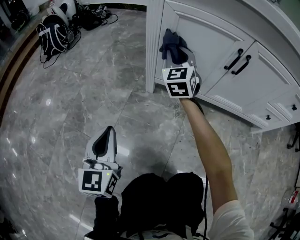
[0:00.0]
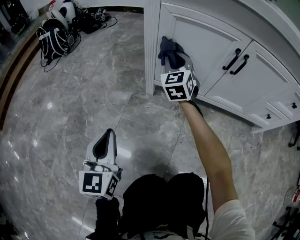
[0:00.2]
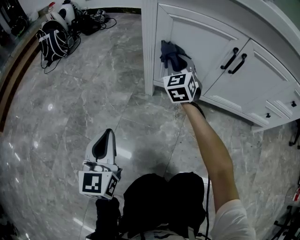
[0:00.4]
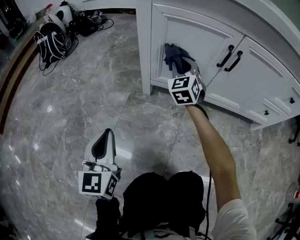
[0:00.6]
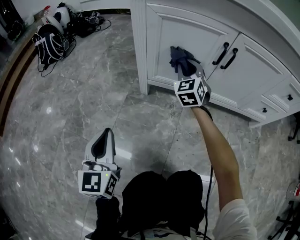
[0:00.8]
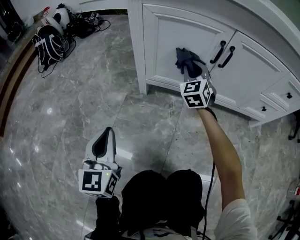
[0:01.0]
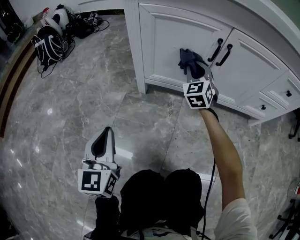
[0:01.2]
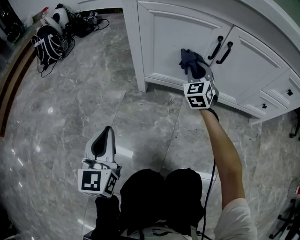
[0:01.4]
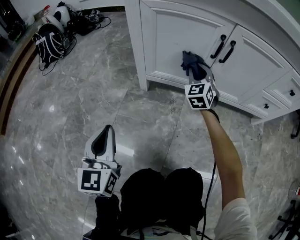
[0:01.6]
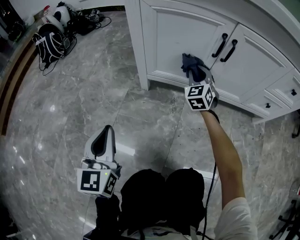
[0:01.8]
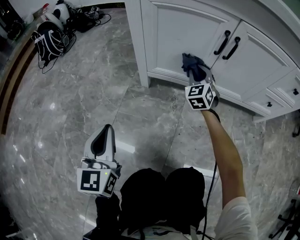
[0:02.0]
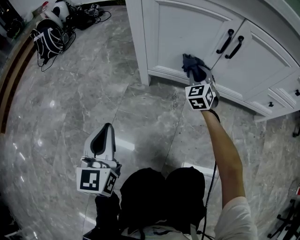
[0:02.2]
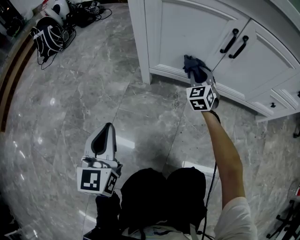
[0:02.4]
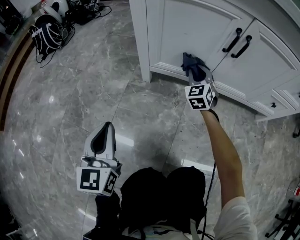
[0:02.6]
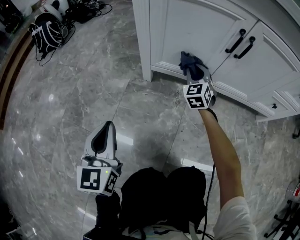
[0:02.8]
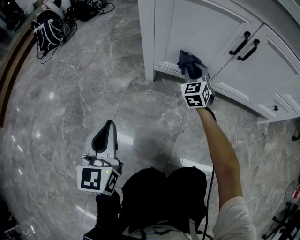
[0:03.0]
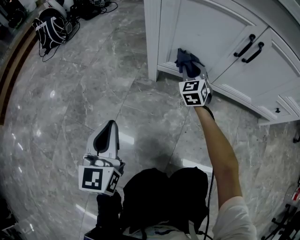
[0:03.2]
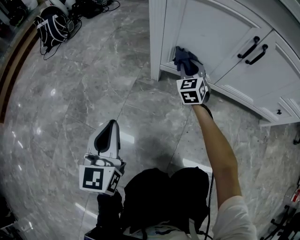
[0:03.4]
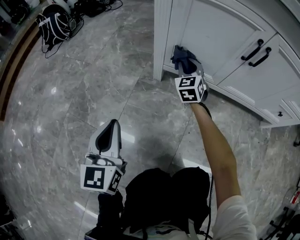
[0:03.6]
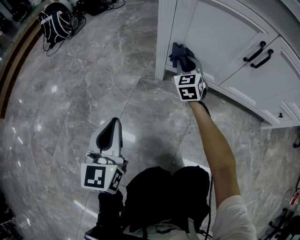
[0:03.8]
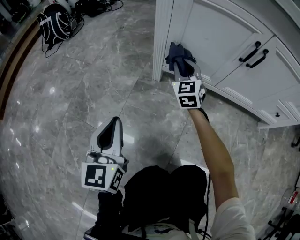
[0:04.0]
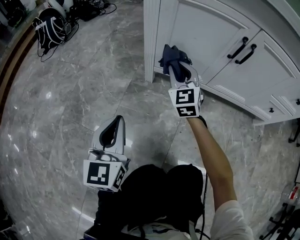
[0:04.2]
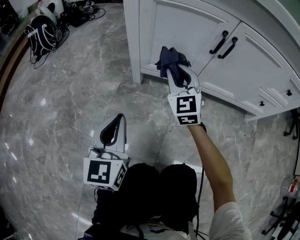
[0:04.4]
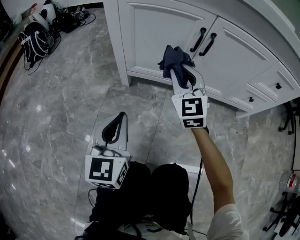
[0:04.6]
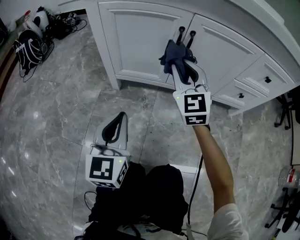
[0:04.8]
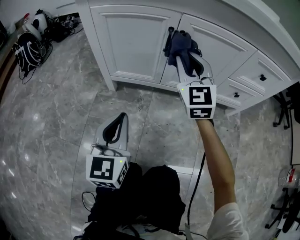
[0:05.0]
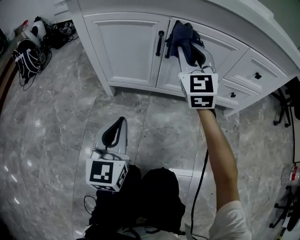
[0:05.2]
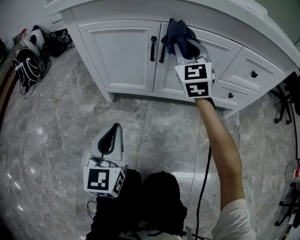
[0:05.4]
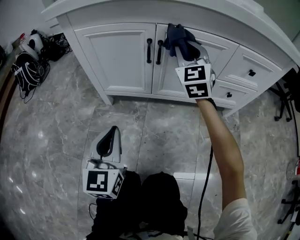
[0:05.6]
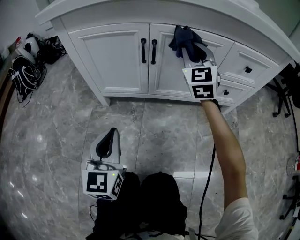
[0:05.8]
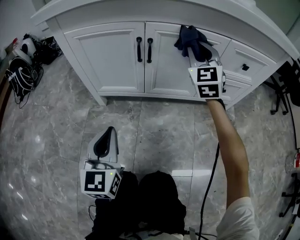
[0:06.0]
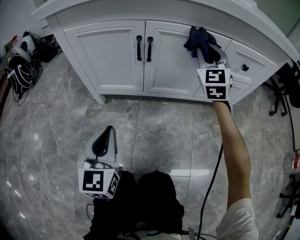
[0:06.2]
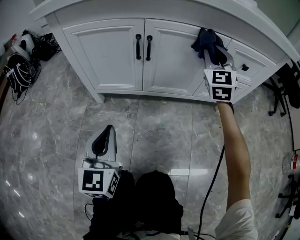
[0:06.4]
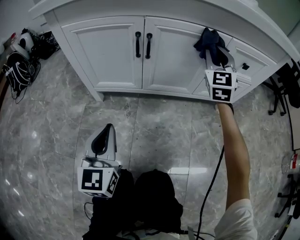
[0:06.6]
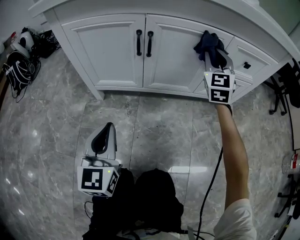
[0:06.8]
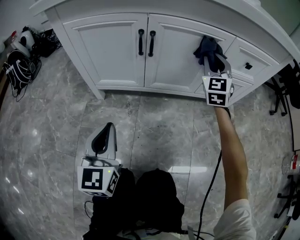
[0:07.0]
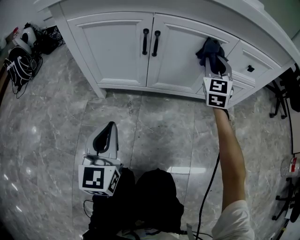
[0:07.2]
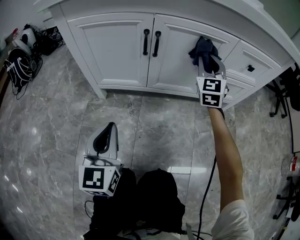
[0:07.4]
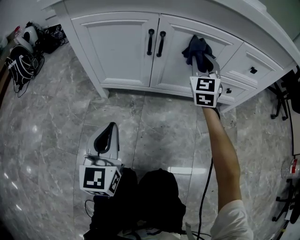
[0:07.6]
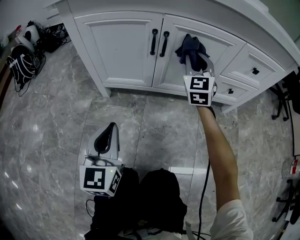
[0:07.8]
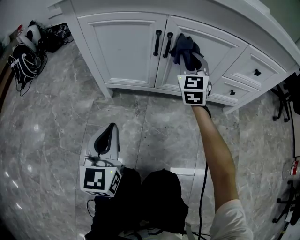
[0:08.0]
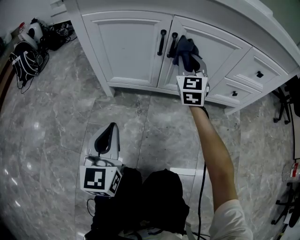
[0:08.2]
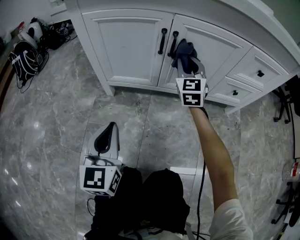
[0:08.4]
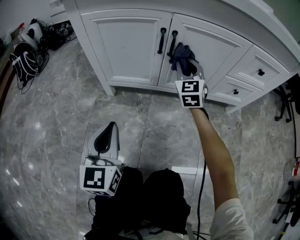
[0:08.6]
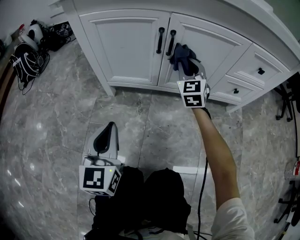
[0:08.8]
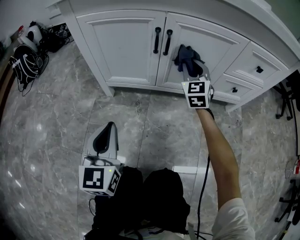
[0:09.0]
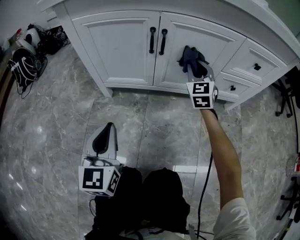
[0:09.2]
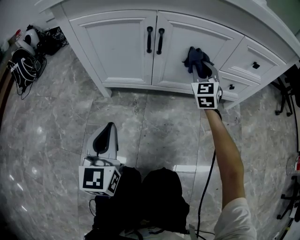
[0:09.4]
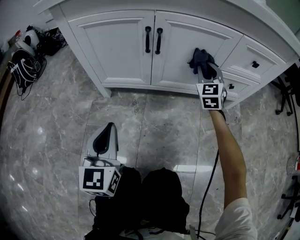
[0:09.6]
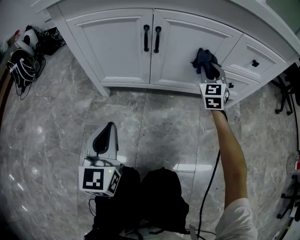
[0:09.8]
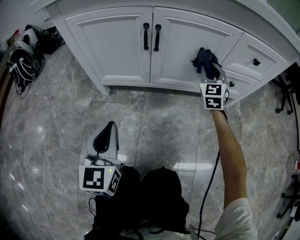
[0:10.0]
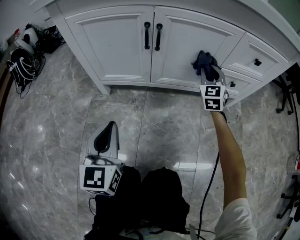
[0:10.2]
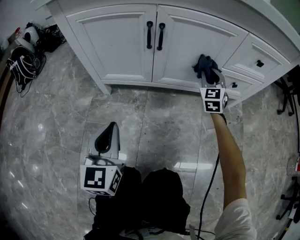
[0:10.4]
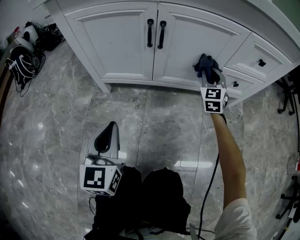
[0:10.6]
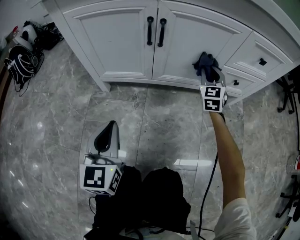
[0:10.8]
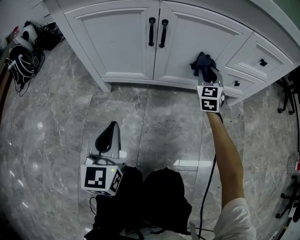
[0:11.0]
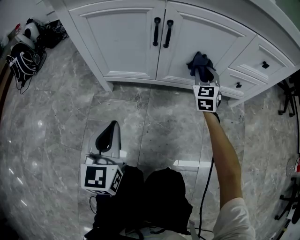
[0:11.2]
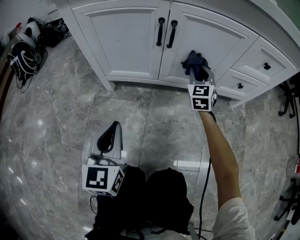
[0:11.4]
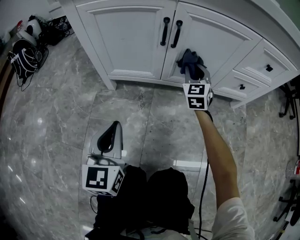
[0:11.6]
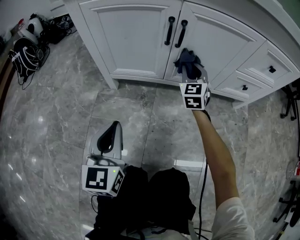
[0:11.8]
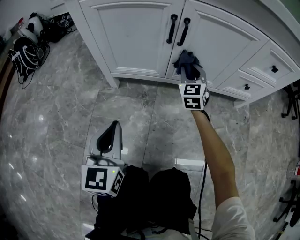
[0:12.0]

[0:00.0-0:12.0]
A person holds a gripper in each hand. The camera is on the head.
0:00.0 to 0:01.6: The right gripper is displaced to the right and downward by some 20 cm.
0:01.6 to 0:03.0: The right gripper shifts roughly 10 cm downward and to the left.
0:03.0 to 0:04.4: The right gripper shifts some 15 cm upward and backward; the left gripper moves to the right, some 5 cm.
0:04.4 to 0:06.0: The right gripper goes some 35 cm to the right and upward, and turns by roughly 20 degrees. Meanwhile the left gripper is displaced to the right by some 15 cm.
0:06.0 to 0:07.6: The right gripper goes about 5 cm downward.
0:07.6 to 0:09.0: The right gripper is displaced downward by some 5 cm.
0:09.0 to 0:10.4: The right gripper is displaced to the right and downward by approximately 15 cm.
0:10.4 to 0:12.0: The right gripper shifts roughly 15 cm to the left.

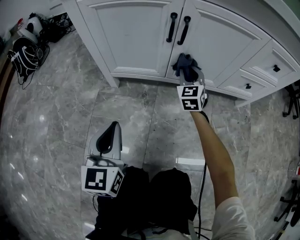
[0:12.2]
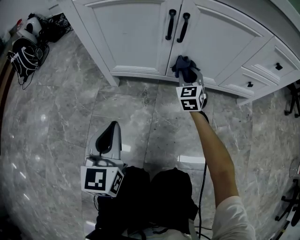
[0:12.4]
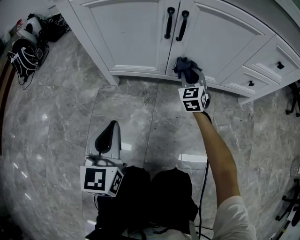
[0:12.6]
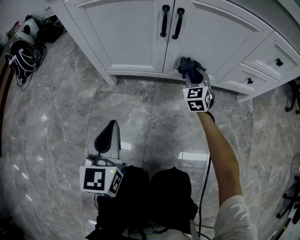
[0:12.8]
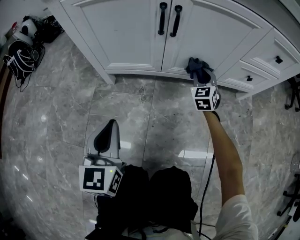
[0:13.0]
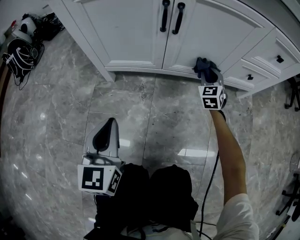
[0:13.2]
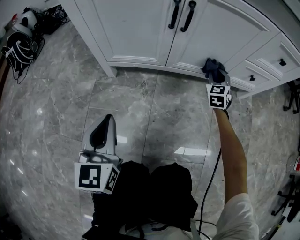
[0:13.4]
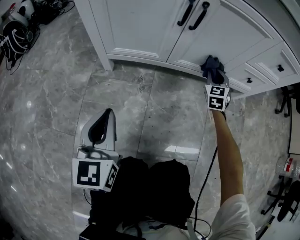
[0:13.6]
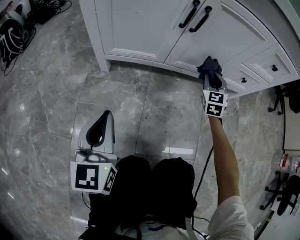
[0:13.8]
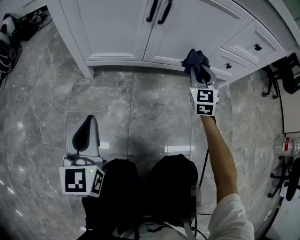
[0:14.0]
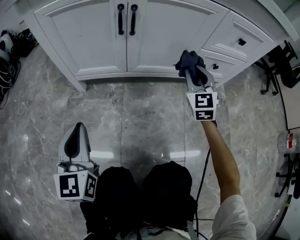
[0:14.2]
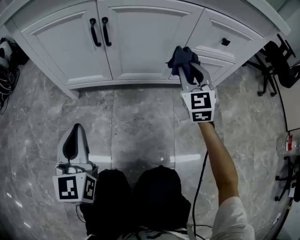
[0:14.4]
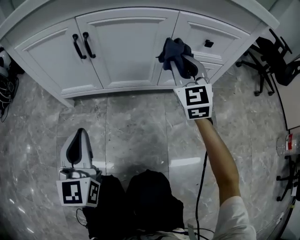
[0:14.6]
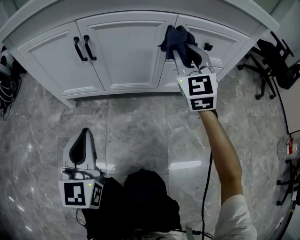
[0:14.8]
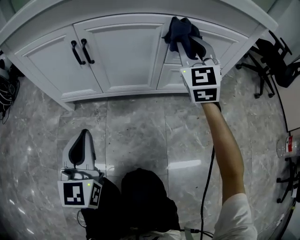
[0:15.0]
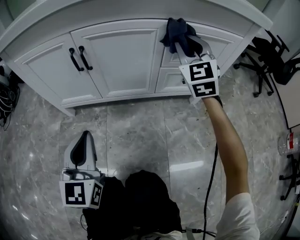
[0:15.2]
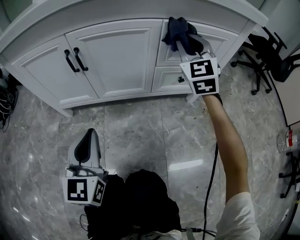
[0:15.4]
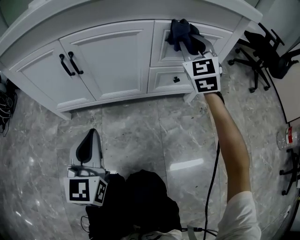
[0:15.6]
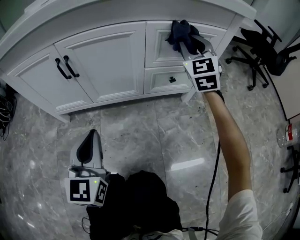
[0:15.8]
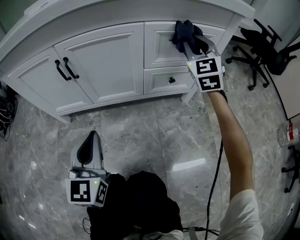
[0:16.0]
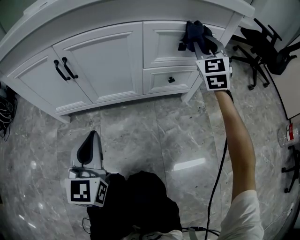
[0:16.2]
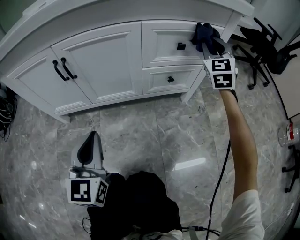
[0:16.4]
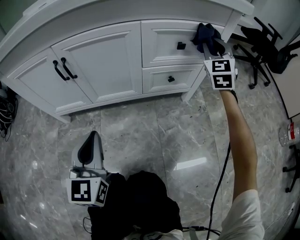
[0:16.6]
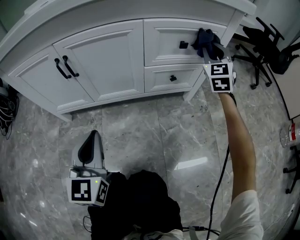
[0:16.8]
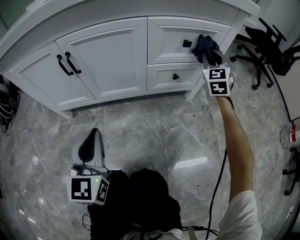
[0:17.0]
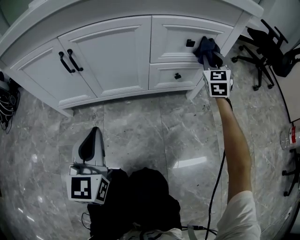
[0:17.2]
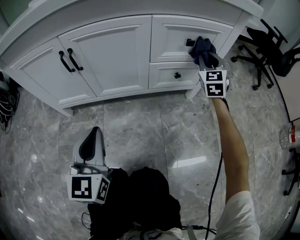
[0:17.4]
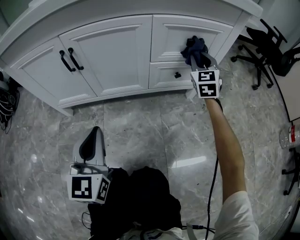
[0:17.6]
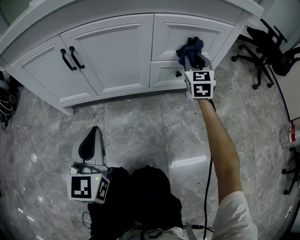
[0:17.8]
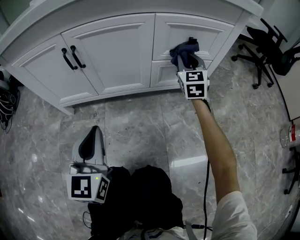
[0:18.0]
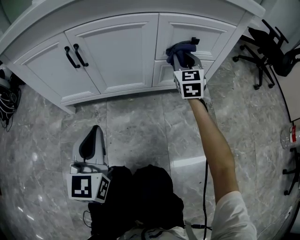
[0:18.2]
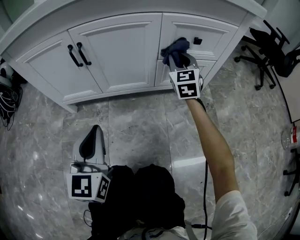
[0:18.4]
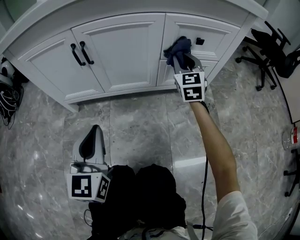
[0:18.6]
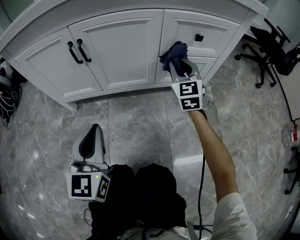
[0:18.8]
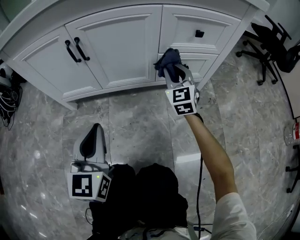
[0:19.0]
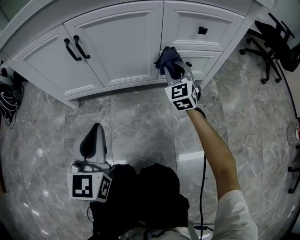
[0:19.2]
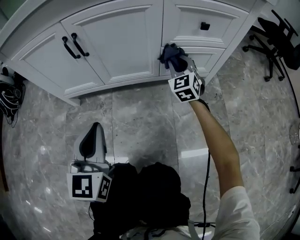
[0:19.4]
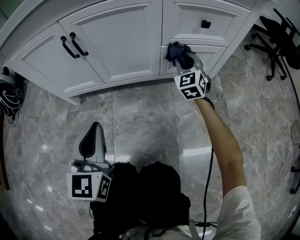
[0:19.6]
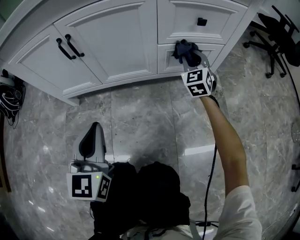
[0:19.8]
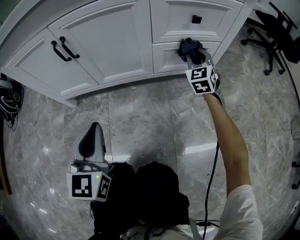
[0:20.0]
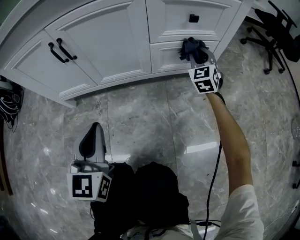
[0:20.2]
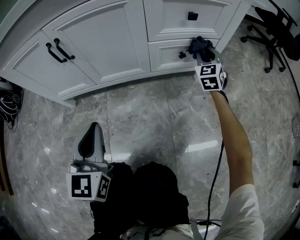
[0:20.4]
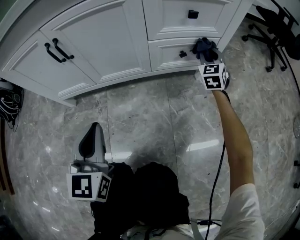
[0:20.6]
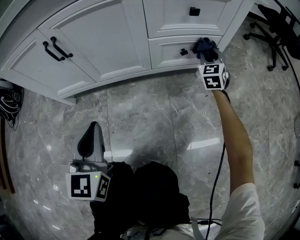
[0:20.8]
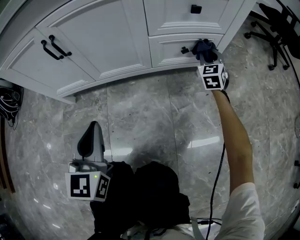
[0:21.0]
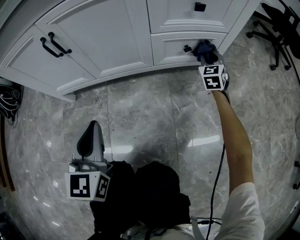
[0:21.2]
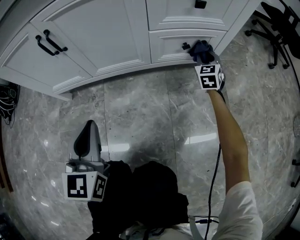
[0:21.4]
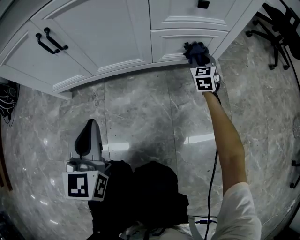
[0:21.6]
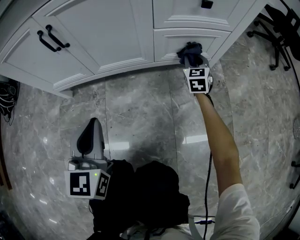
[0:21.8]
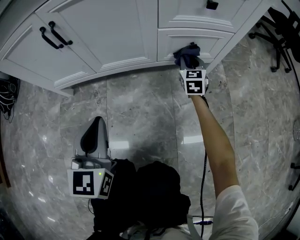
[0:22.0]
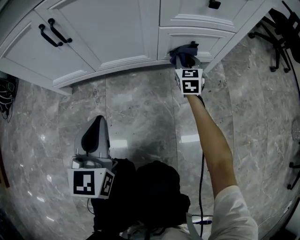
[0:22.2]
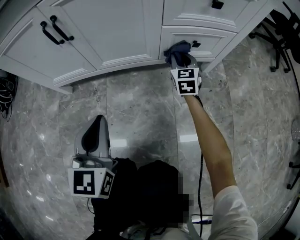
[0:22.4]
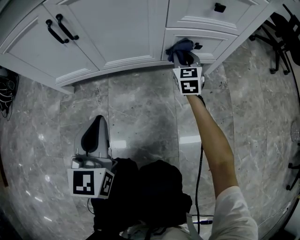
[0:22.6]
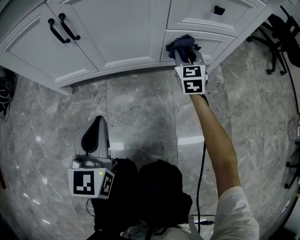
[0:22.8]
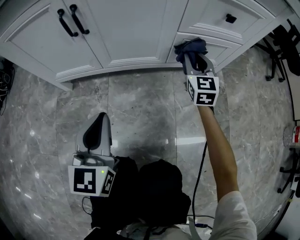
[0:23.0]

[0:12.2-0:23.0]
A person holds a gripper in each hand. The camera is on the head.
0:12.2 to 0:13.8: The right gripper goes approximately 10 cm to the right.
0:13.8 to 0:15.2: The right gripper is displaced upward and to the right by approximately 30 cm, and changes its angle by some 20 degrees. Meanwhile the left gripper shifts roughly 25 cm to the right and upward.
0:15.2 to 0:16.8: The left gripper goes some 5 cm to the right. The right gripper heads to the right, covering some 20 cm.
0:16.8 to 0:18.4: The right gripper moves to the left and downward, about 20 cm.
0:18.4 to 0:20.0: The right gripper shifts roughly 15 cm downward and to the right.
0:20.0 to 0:21.4: The right gripper shifts some 10 cm downward and to the right.
0:21.4 to 0:23.0: The right gripper moves to the left and upward, about 15 cm.

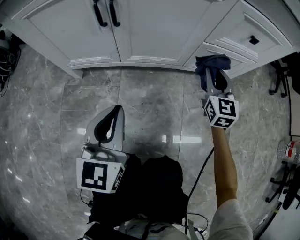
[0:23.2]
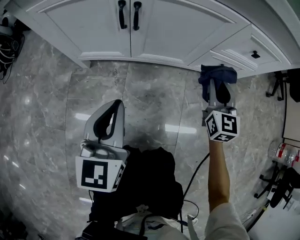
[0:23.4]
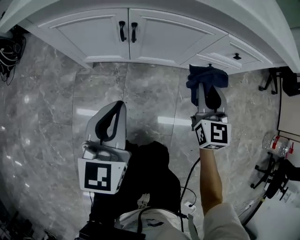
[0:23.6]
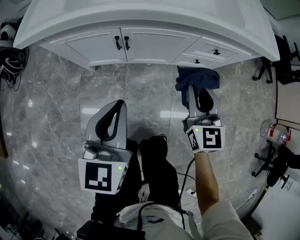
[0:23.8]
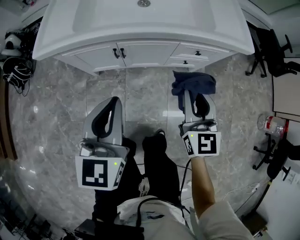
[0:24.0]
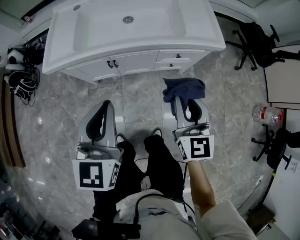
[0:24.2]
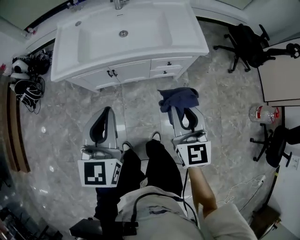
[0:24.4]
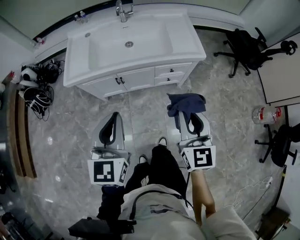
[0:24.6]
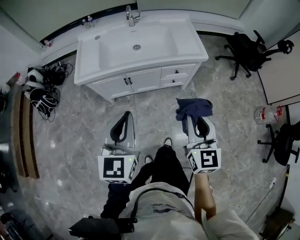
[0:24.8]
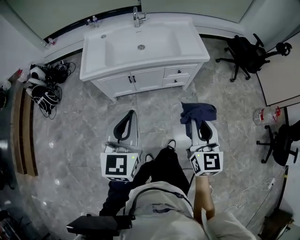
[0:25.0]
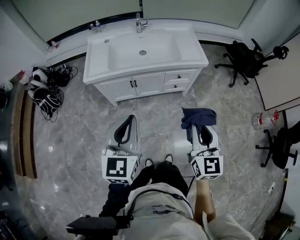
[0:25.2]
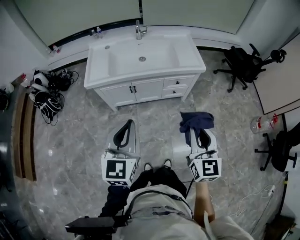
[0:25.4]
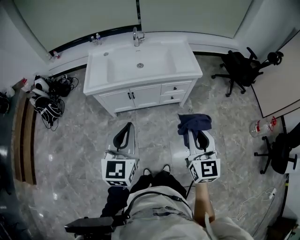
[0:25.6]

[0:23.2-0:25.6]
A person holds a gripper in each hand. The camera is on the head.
0:23.2 to 0:24.4: The two grippers go about 60 cm upward.
0:24.4 to 0:25.6: The two grippers go approximately 20 cm backward and upward.
